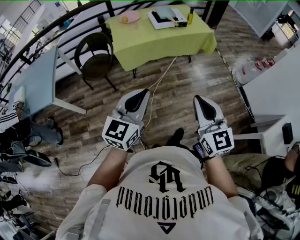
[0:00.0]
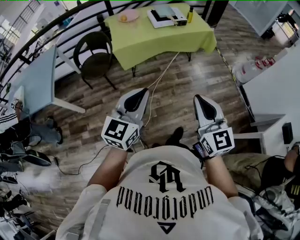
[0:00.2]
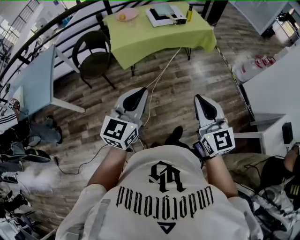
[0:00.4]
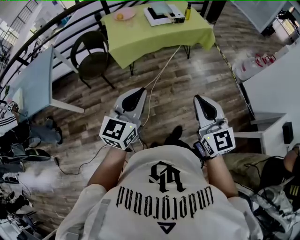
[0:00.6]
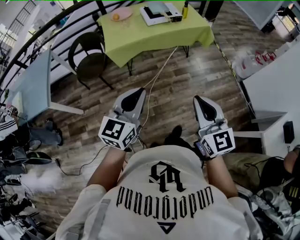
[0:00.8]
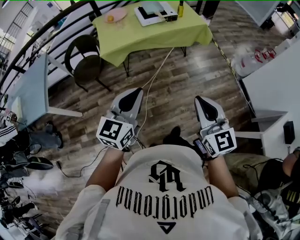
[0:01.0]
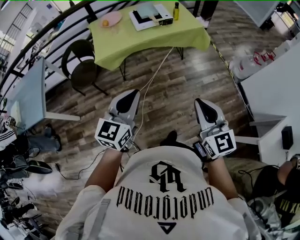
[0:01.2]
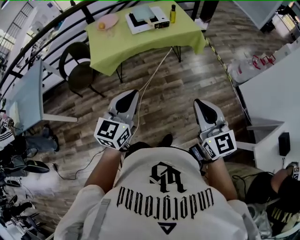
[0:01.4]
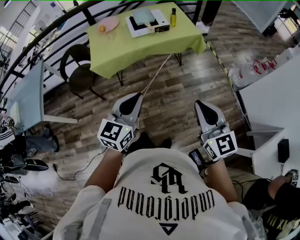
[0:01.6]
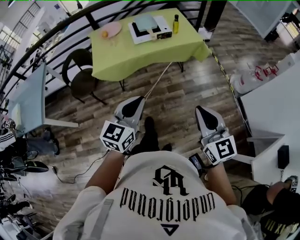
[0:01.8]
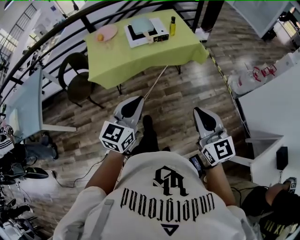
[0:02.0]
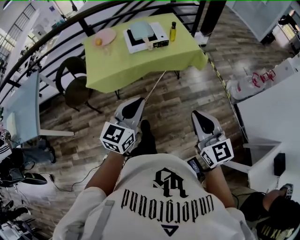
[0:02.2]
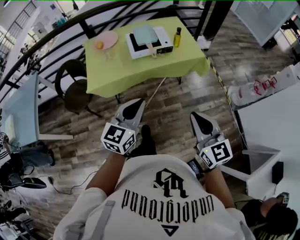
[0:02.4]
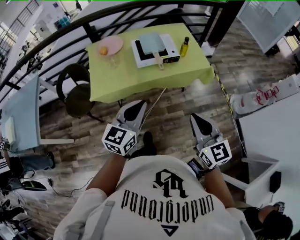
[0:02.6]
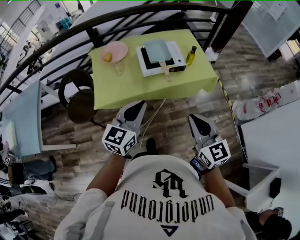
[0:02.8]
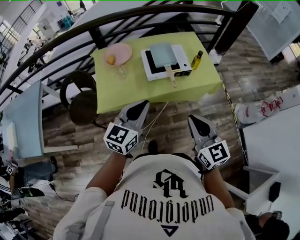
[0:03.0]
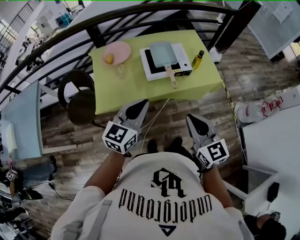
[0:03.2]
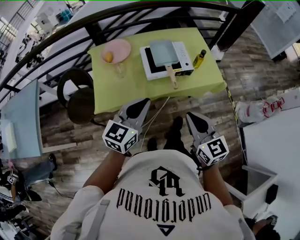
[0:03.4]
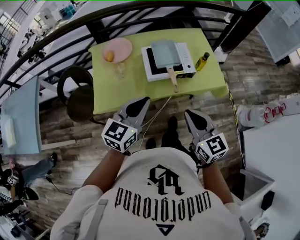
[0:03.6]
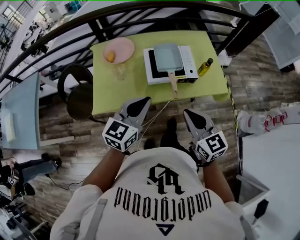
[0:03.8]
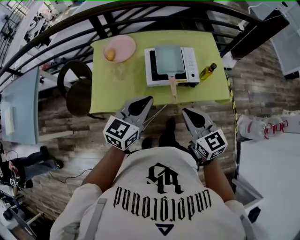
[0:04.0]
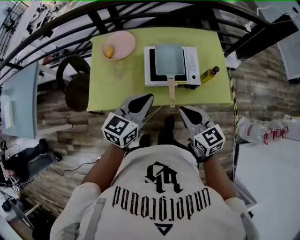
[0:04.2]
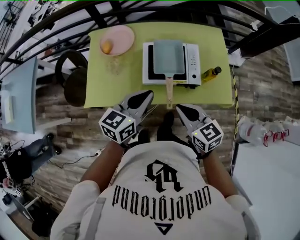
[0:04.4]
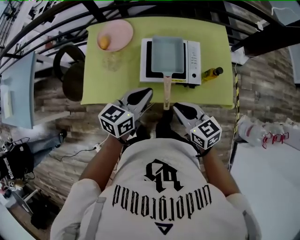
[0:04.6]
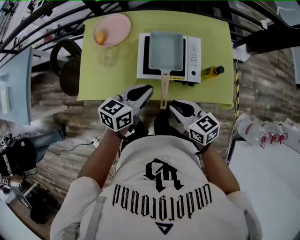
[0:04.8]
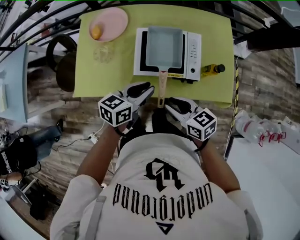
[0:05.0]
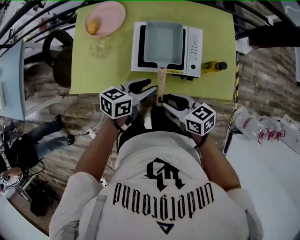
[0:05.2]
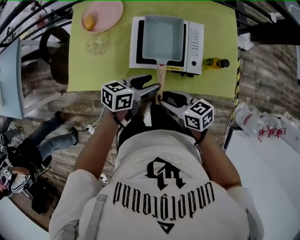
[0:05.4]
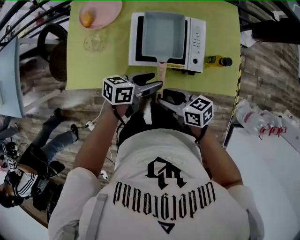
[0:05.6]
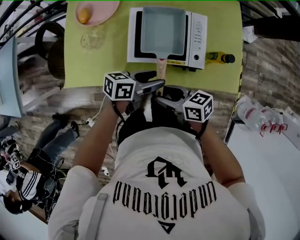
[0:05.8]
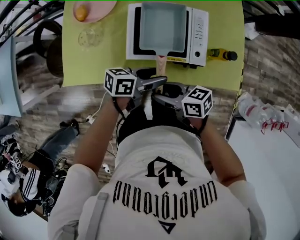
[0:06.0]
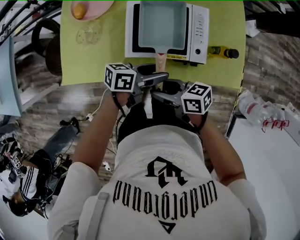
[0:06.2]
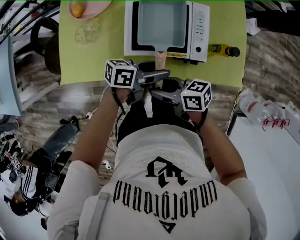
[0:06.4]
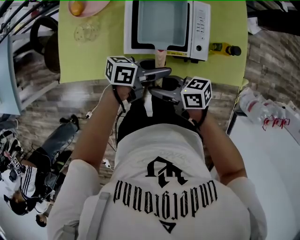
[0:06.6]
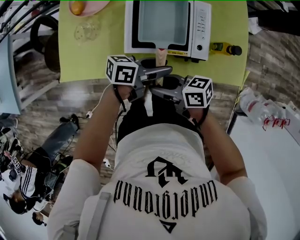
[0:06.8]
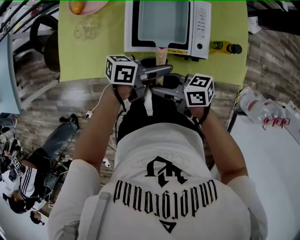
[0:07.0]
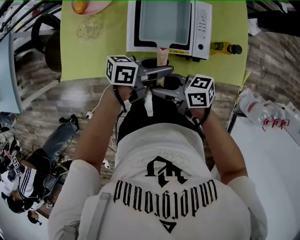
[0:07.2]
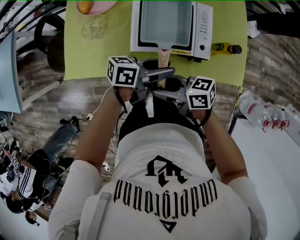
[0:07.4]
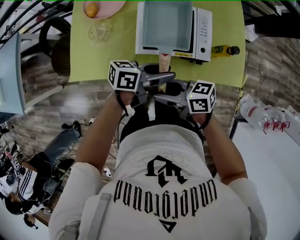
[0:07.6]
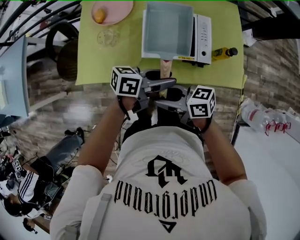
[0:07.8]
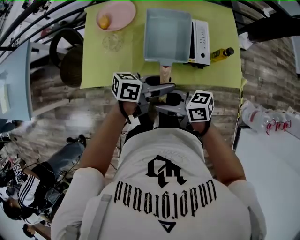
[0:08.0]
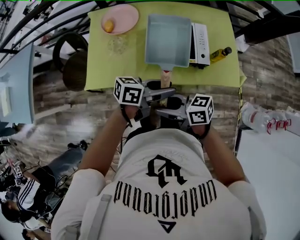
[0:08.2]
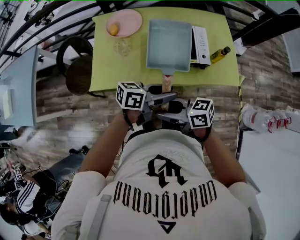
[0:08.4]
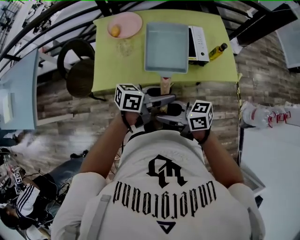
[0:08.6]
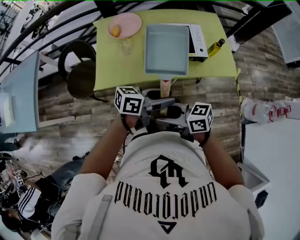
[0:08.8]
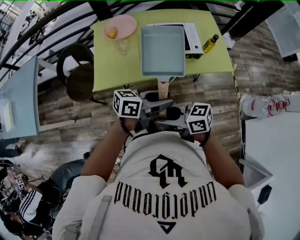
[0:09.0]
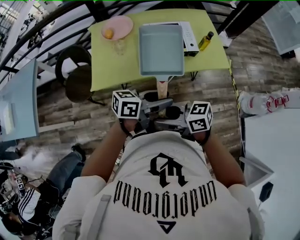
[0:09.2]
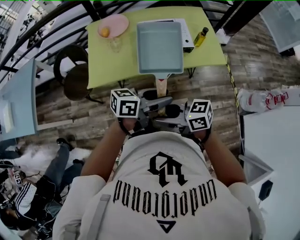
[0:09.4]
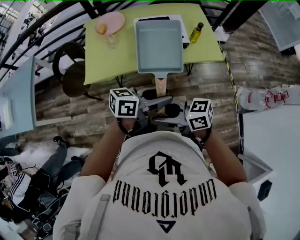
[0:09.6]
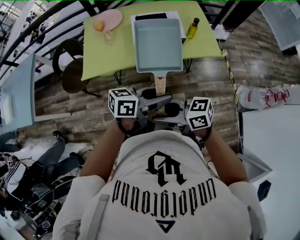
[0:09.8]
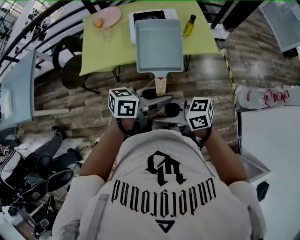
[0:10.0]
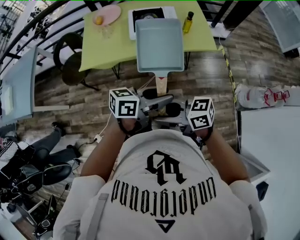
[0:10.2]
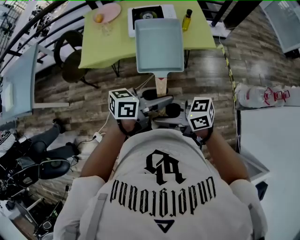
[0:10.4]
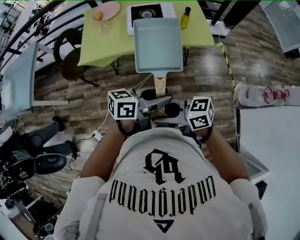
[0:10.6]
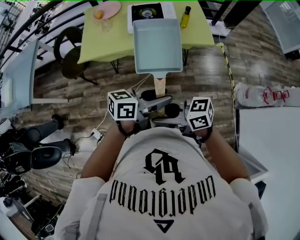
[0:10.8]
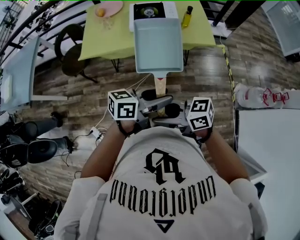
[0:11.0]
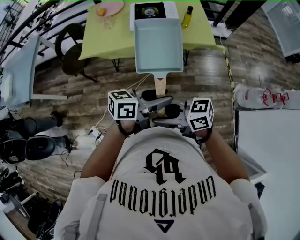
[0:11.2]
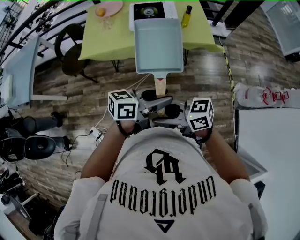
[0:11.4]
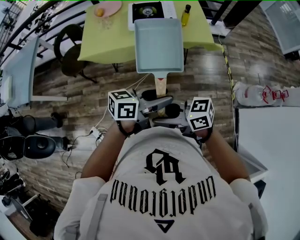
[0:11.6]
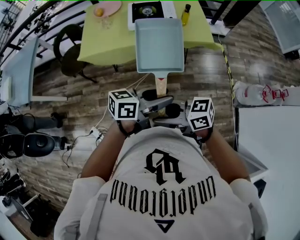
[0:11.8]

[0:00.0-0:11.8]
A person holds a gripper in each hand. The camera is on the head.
0:00.0 to 0:01.4: The right gripper goes about 25 cm to the right and forward. The left gripper travels forward and to the right by some 25 cm.
0:01.4 to 0:03.0: The two grippers travel together, forward, approximately 40 cm.
0:03.0 to 0:04.4: Both grippers travel together forward and downward, some 25 cm. The right gripper swivels approximately 30 degrees.
0:04.4 to 0:06.0: The two grippers go about 20 cm downward. The right gripper changes its angle by roughly 40 degrees, and opens up. The left gripper changes its angle by roughly 40 degrees, and opens its fingers.
0:06.0 to 0:07.4: The grippers make only small movements.
0:07.4 to 0:08.8: The left gripper changes place by roughly 30 cm; the right gripper moves about 30 cm.
0:08.8 to 0:10.4: The right gripper moves roughly 30 cm; the left gripper ends up approximately 30 cm from where it was.
0:10.4 to 0:11.8: The grippers stay close to where they were, moving slightly.

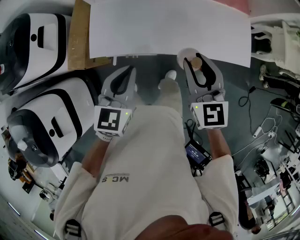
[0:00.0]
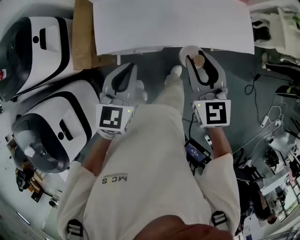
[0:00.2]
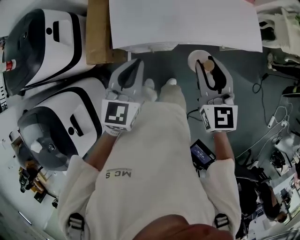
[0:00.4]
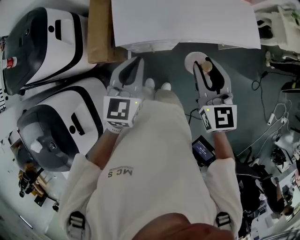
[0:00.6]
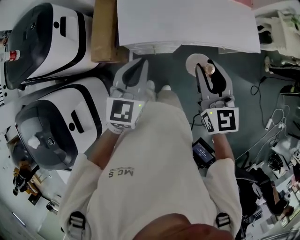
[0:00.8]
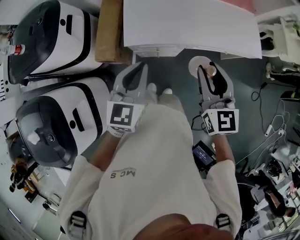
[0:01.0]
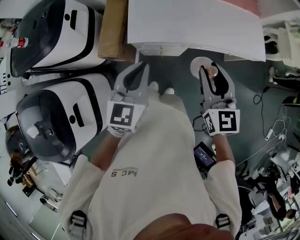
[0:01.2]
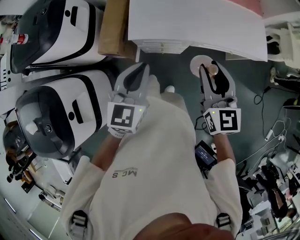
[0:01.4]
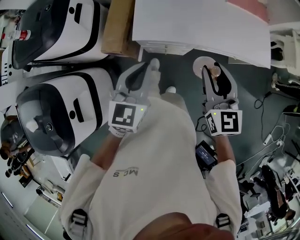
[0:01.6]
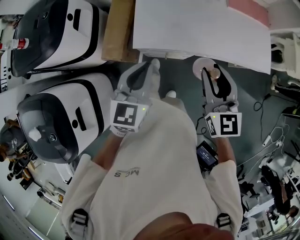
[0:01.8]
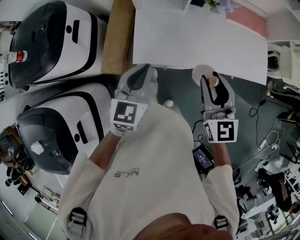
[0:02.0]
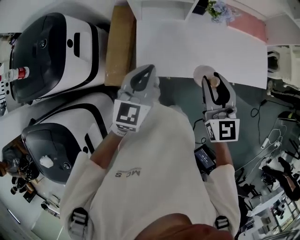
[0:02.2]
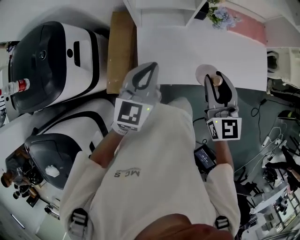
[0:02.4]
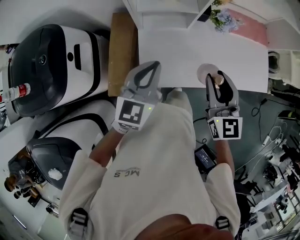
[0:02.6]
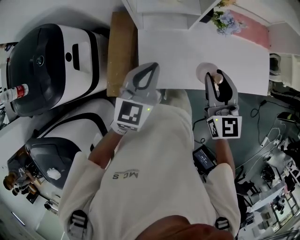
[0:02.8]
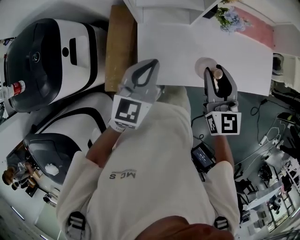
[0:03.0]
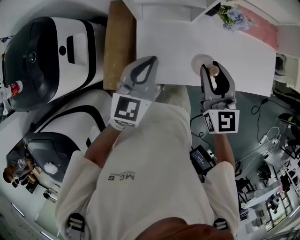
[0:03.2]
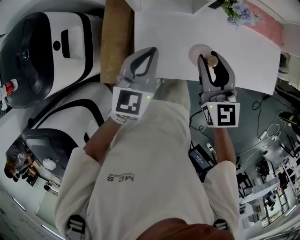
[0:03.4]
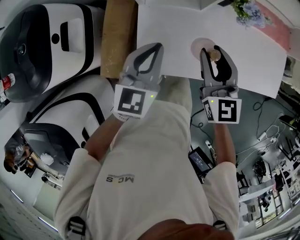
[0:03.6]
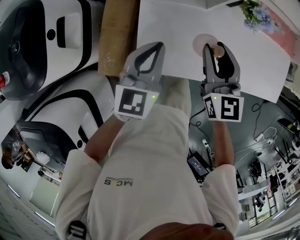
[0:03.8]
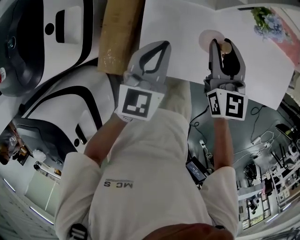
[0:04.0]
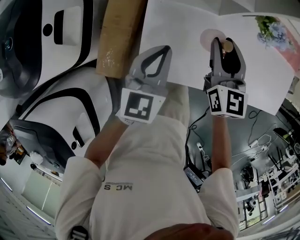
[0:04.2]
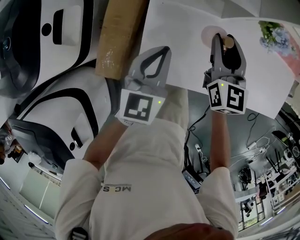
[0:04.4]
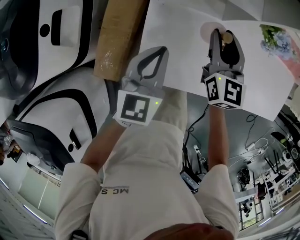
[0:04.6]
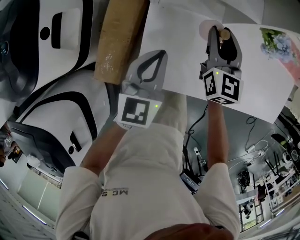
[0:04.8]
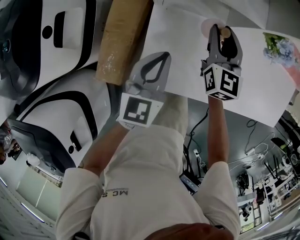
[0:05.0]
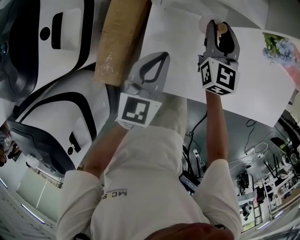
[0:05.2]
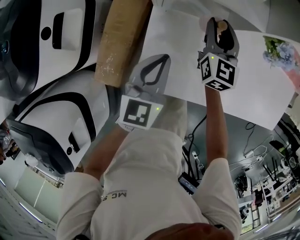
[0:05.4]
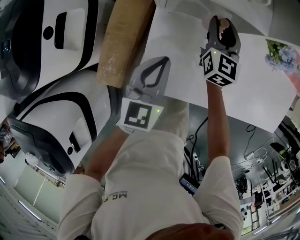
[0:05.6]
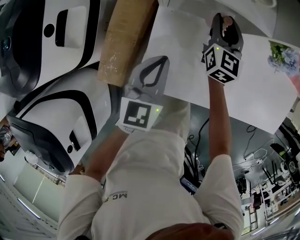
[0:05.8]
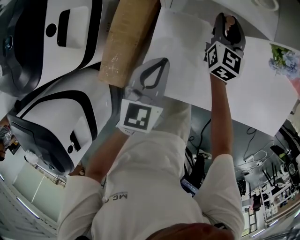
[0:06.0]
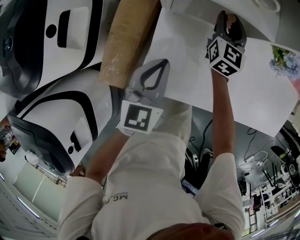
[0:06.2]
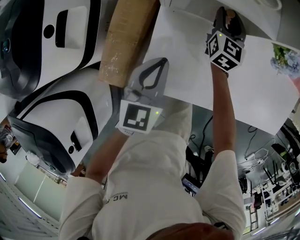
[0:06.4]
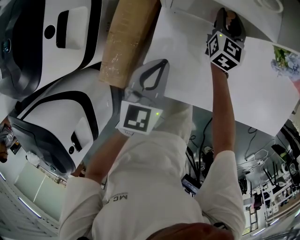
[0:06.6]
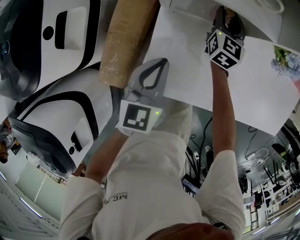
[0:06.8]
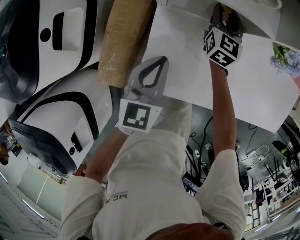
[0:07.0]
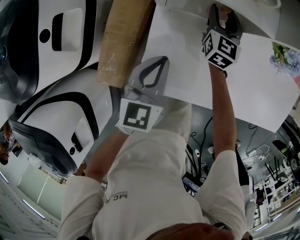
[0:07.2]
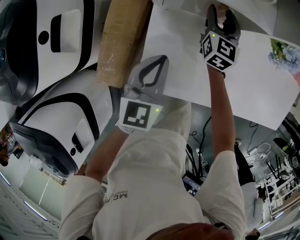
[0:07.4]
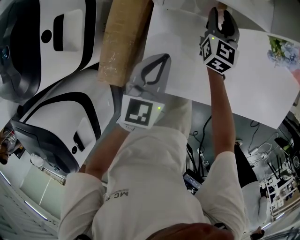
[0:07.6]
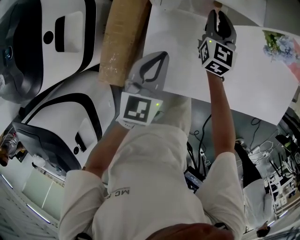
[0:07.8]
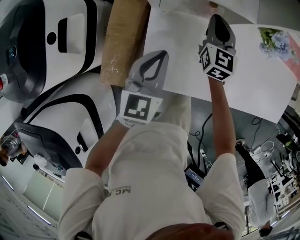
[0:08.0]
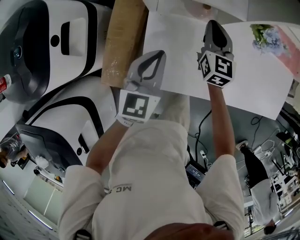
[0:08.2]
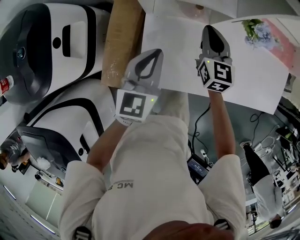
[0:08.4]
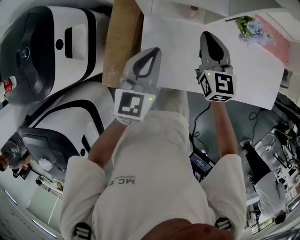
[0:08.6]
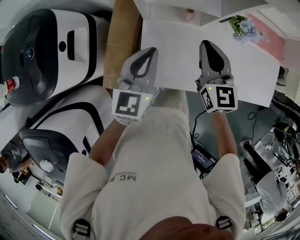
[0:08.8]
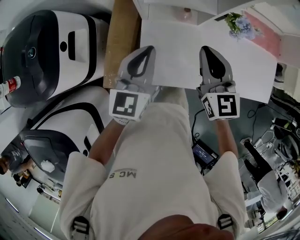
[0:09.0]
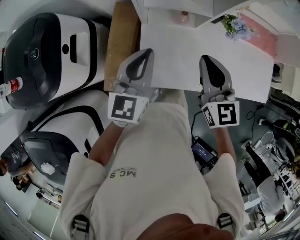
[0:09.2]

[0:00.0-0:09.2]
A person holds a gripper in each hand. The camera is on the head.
0:00.0 to 0:01.6: Both grippers travel together to the left and backward, approximately 20 cm.
0:01.6 to 0:03.0: The grippers both shift forward by some 30 cm.
0:03.0 to 0:04.6: The left gripper moves downward, some 15 cm. The right gripper heads downward and forward, covering roughly 25 cm.
0:04.6 to 0:06.2: The right gripper shifts about 15 cm forward and downward.
0:06.2 to 0:07.6: The grippers stay close to where they were, moving slightly.
0:07.6 to 0:09.2: The left gripper heads upward, covering some 20 cm. The right gripper travels upward and backward by about 35 cm, and closes up.

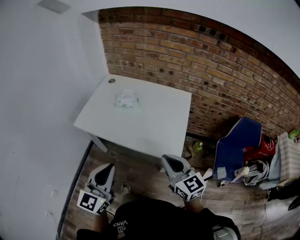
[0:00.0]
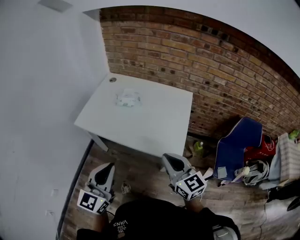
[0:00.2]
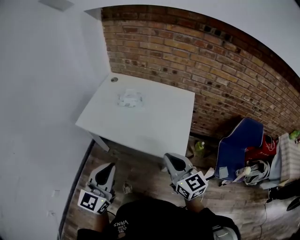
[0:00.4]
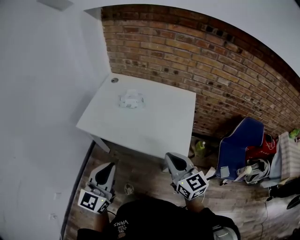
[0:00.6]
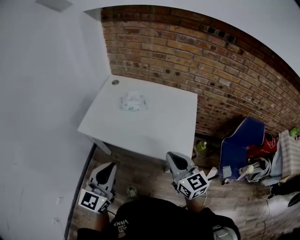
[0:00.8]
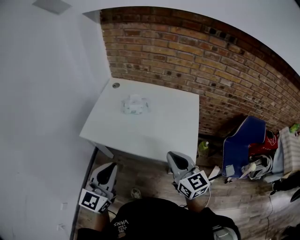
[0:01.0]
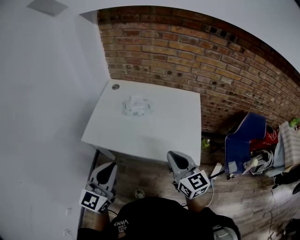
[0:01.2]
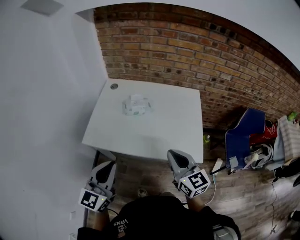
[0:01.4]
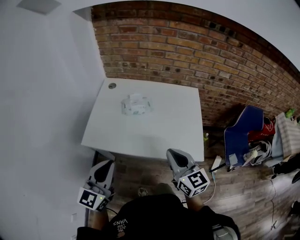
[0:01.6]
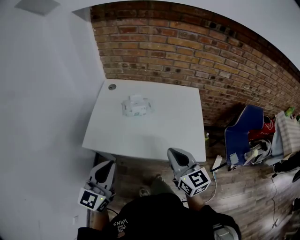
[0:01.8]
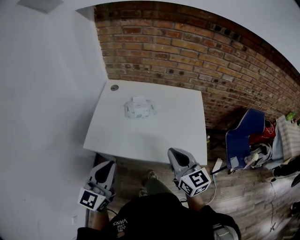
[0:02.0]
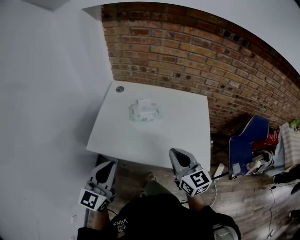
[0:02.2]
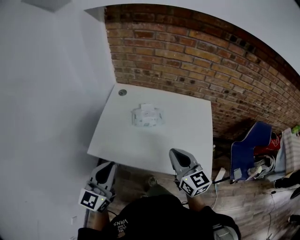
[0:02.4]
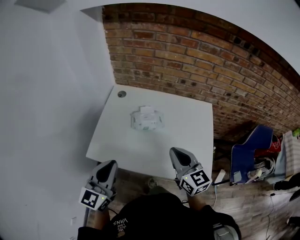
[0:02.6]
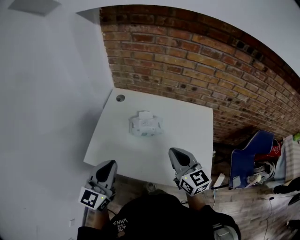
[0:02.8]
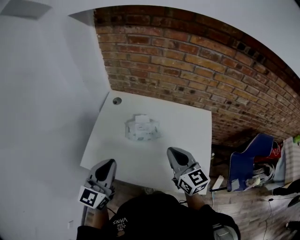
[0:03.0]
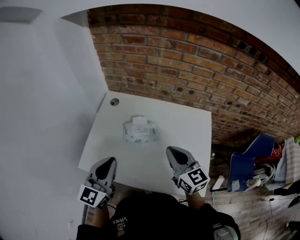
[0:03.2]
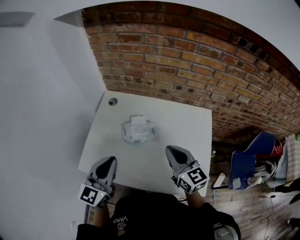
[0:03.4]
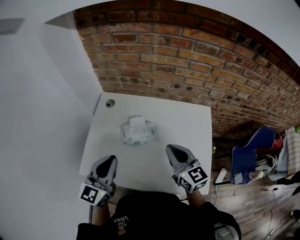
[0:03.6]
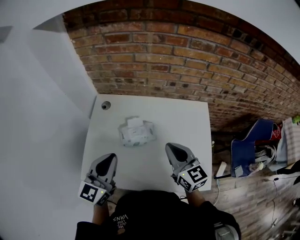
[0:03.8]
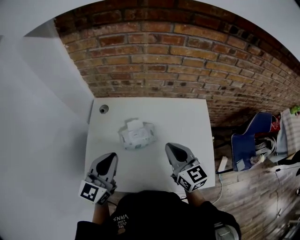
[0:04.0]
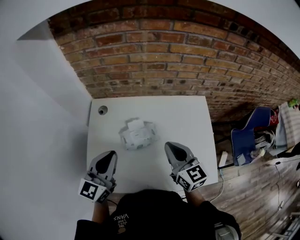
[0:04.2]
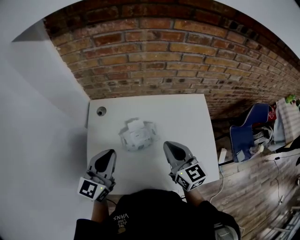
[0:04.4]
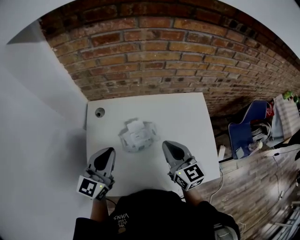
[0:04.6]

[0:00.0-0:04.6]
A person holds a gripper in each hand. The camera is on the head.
0:00.0 to 0:01.6: The two grippers go roughly 20 cm to the left and forward.
0:01.6 to 0:03.0: The two grippers go about 20 cm forward.
0:03.0 to 0:04.6: The left gripper heads forward, covering some 20 cm, and rotates about 20 degrees, while the right gripper moves forward, some 10 cm.
